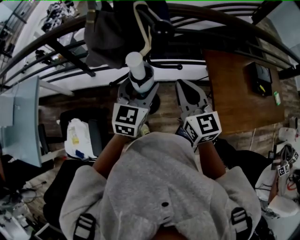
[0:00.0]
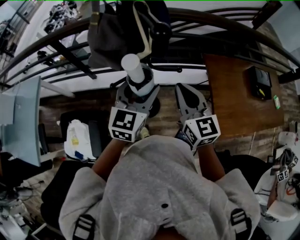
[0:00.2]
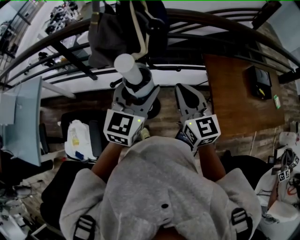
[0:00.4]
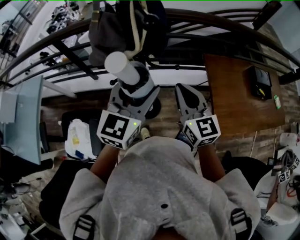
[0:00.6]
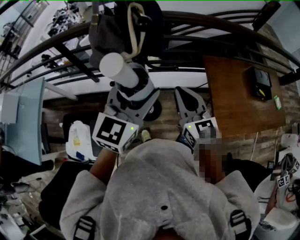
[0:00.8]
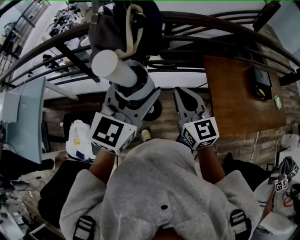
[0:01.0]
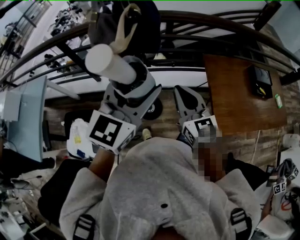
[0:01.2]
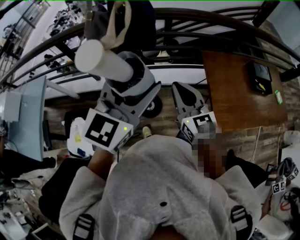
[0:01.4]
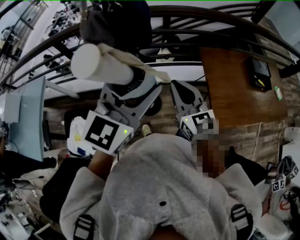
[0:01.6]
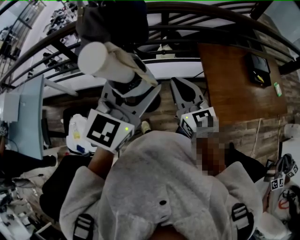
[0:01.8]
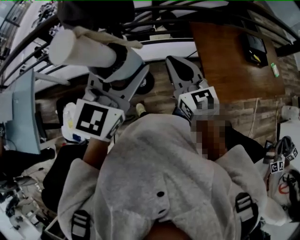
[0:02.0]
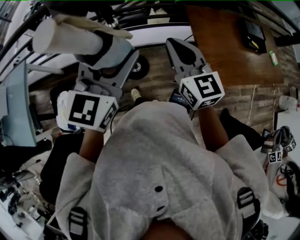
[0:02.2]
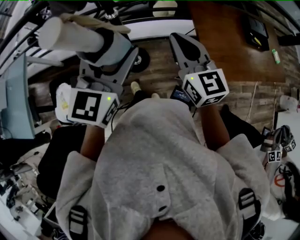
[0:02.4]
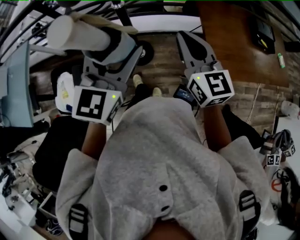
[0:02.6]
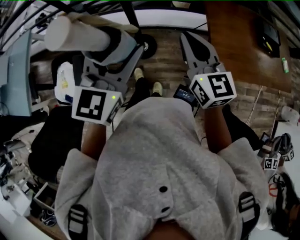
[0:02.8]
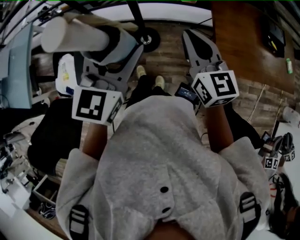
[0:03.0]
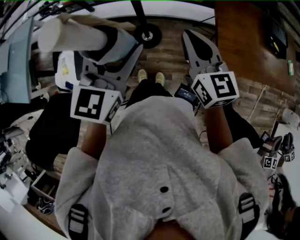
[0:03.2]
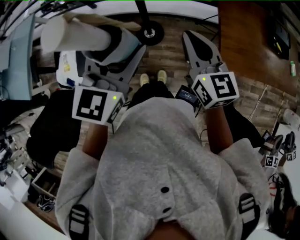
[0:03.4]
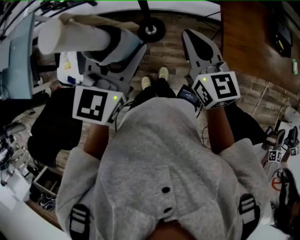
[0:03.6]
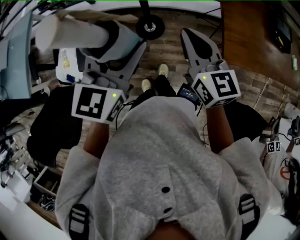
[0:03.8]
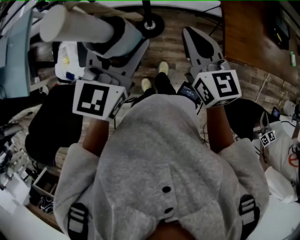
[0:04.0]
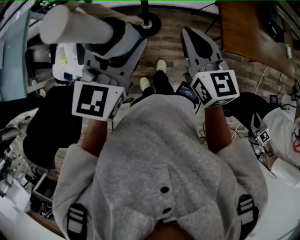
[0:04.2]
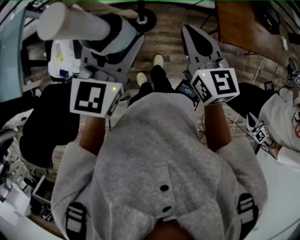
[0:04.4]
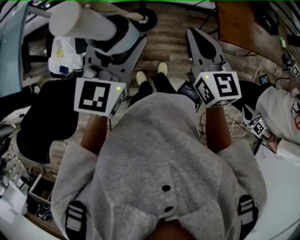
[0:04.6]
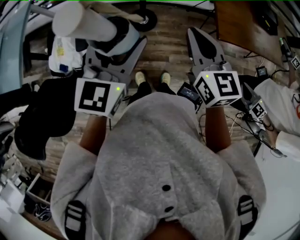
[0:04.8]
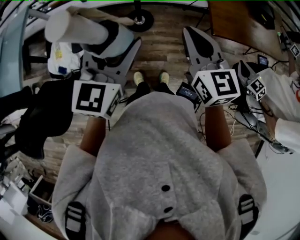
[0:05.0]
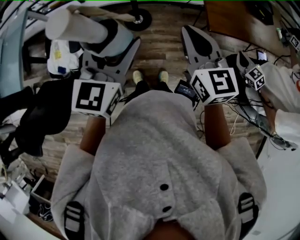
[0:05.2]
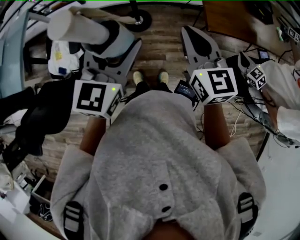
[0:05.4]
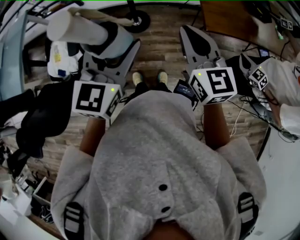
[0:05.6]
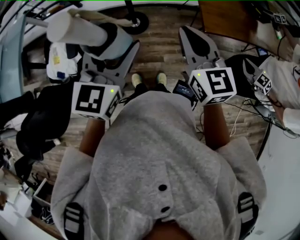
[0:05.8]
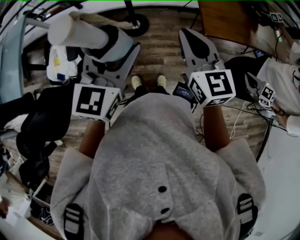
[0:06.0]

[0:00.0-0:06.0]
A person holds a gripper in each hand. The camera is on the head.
0:00.0 to 0:01.6: The left gripper moves upward, backward and to the right, some 20 cm. The right gripper shifts approximately 5 cm to the right.
0:01.6 to 0:03.0: The right gripper moves to the right and downward, some 10 cm. Meanwhile the left gripper moves downward and backward, some 15 cm.
0:03.0 to 0:04.4: Both grippers move to the left and backward, some 15 cm.
0:04.4 to 0:06.0: The right gripper ends up roughly 5 cm from where it was.

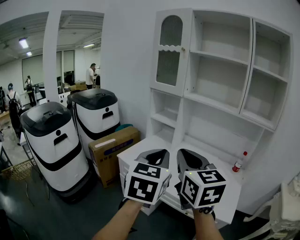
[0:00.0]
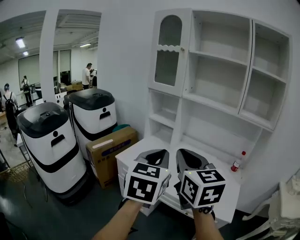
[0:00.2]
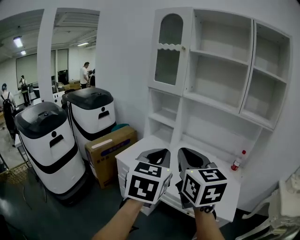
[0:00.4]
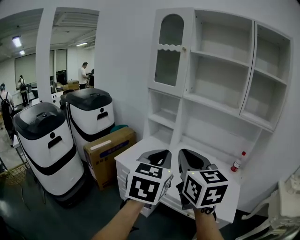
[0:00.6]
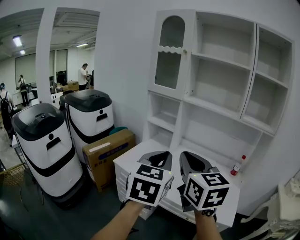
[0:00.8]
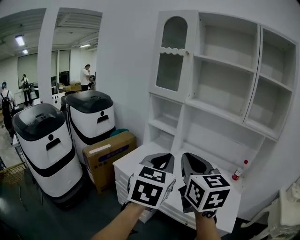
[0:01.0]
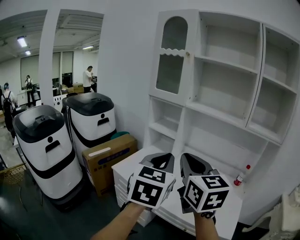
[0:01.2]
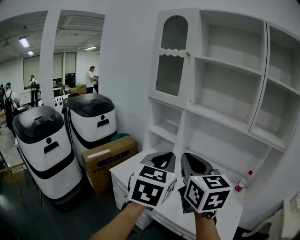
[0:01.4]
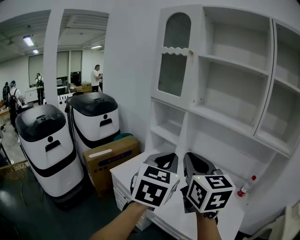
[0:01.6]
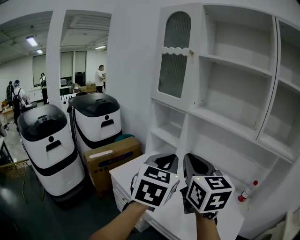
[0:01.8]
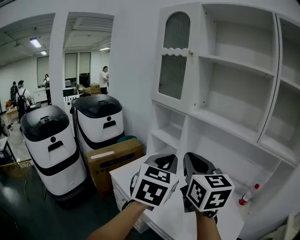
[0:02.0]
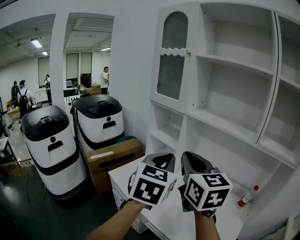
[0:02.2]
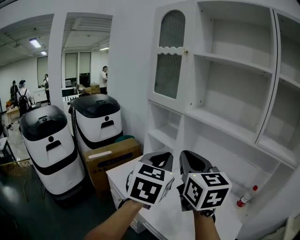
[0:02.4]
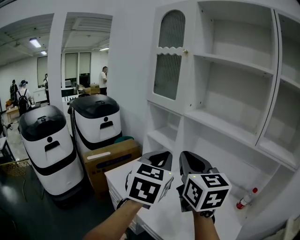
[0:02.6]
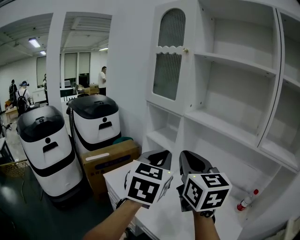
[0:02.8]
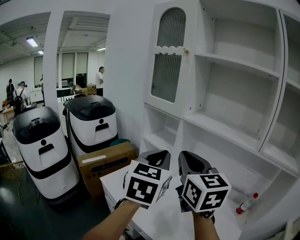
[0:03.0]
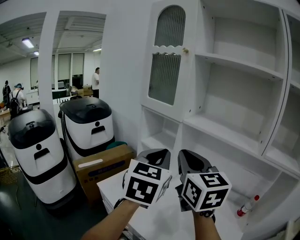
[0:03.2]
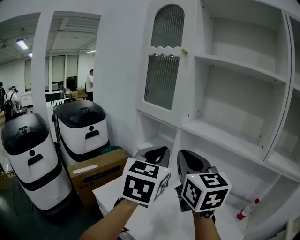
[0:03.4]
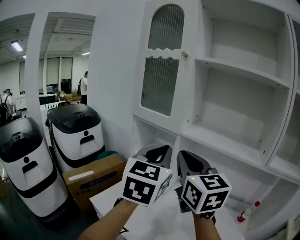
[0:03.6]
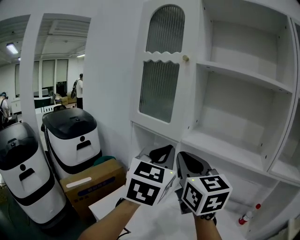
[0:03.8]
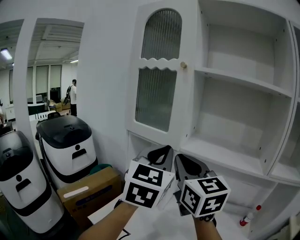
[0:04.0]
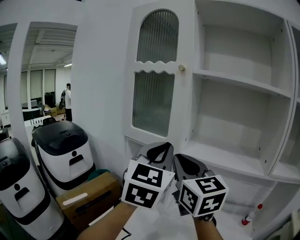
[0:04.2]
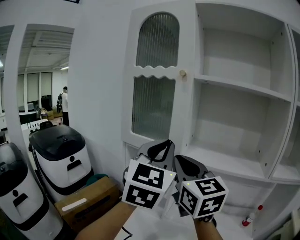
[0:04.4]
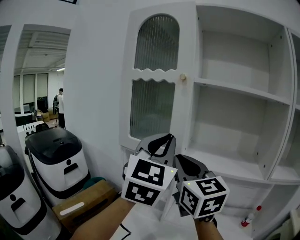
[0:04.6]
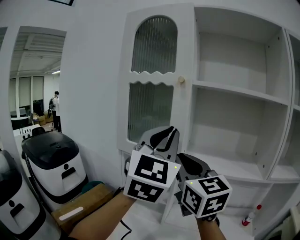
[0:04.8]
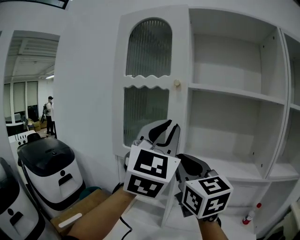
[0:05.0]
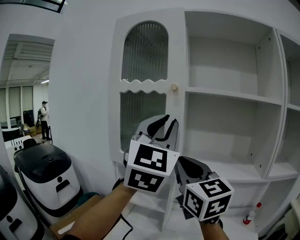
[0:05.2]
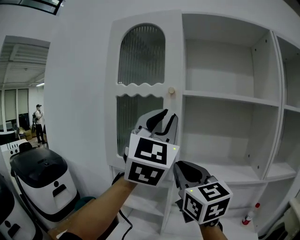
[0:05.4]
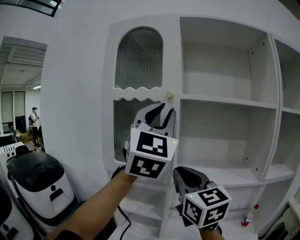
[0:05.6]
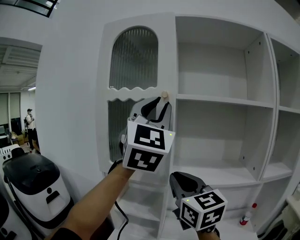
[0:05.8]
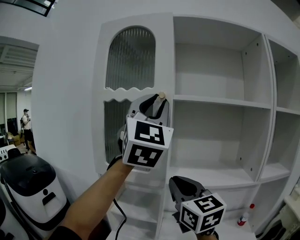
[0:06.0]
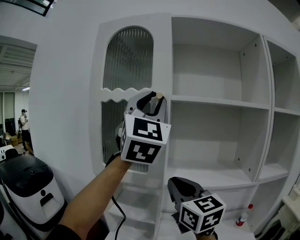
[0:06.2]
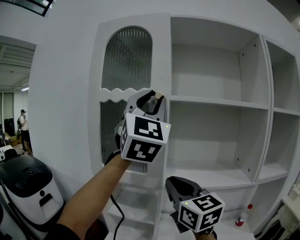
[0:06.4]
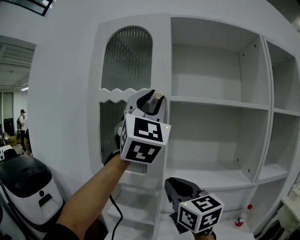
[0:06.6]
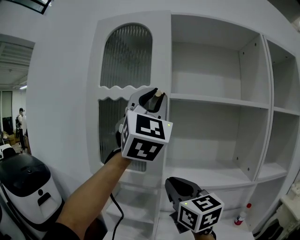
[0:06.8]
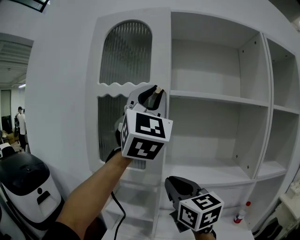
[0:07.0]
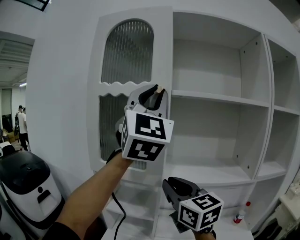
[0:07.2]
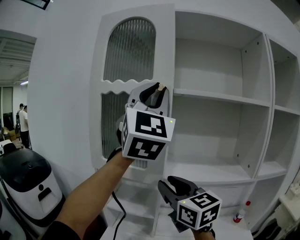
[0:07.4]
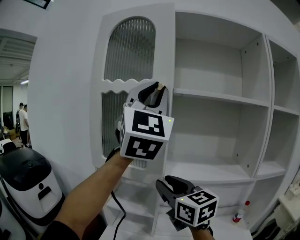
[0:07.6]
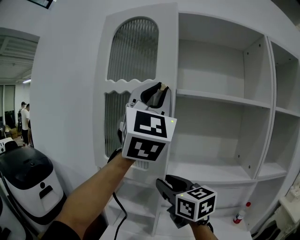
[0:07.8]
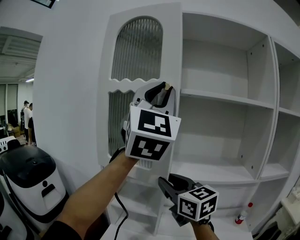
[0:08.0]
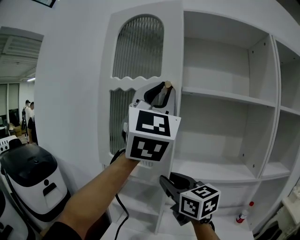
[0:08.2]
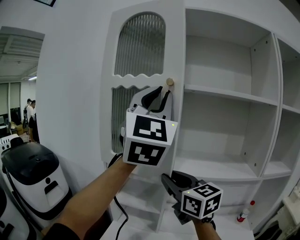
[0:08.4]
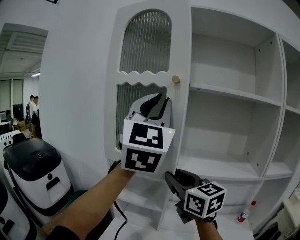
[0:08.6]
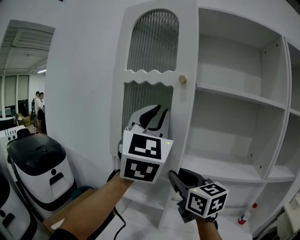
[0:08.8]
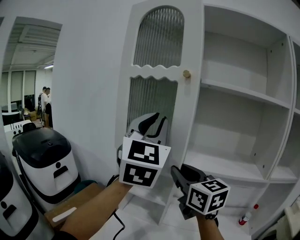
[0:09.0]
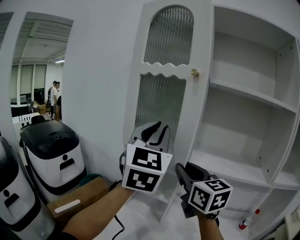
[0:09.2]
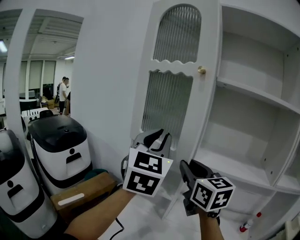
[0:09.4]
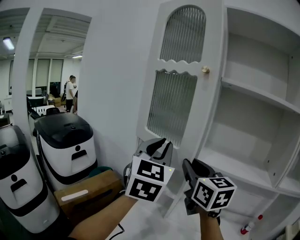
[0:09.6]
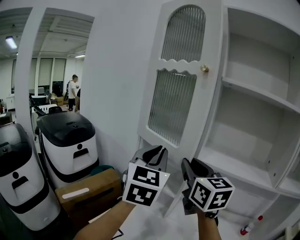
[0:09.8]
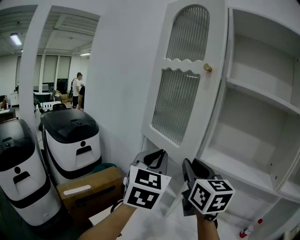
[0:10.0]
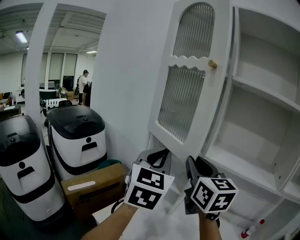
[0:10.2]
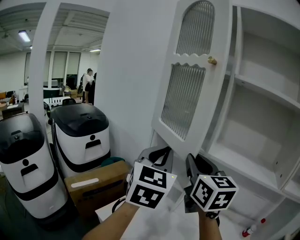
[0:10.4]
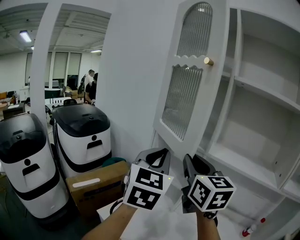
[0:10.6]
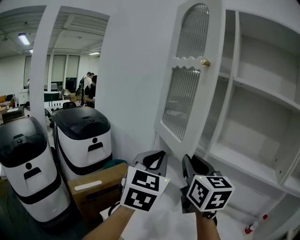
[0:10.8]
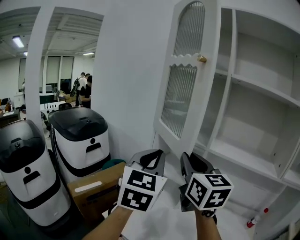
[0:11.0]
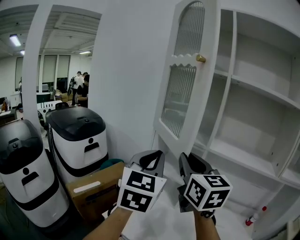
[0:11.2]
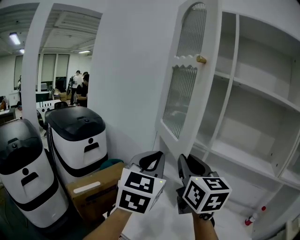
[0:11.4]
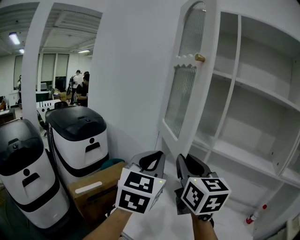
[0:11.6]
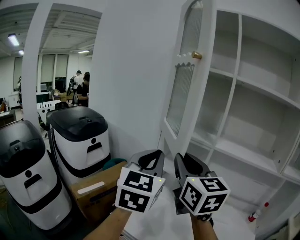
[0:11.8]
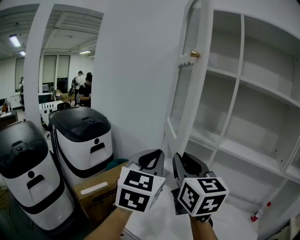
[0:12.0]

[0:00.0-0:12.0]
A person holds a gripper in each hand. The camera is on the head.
0:00.0 to 0:01.6: The grippers both shift forward by about 15 cm.
0:01.6 to 0:03.0: Both grippers move forward, about 10 cm.
0:03.0 to 0:04.4: The two grippers go roughly 20 cm forward and upward. The left gripper turns by approximately 30 degrees.
0:04.4 to 0:06.0: The left gripper goes roughly 20 cm upward, changes its angle by some 30 degrees, and opens.
0:06.0 to 0:07.6: The right gripper opens up.
0:07.6 to 0:09.0: The left gripper moves downward and to the left, about 15 cm, and changes its angle by approximately 20 degrees.
0:09.0 to 0:10.4: The left gripper moves downward and backward, roughly 15 cm, and changes its angle by about 20 degrees; the right gripper ends up approximately 5 cm from where it was.
0:10.4 to 0:12.0: The left gripper travels to the left by about 10 cm; the right gripper moves to the left and backward, some 15 cm.

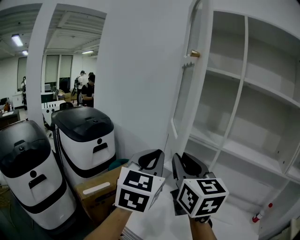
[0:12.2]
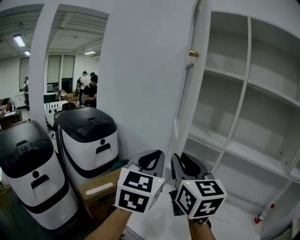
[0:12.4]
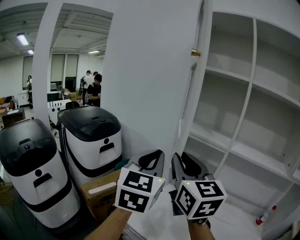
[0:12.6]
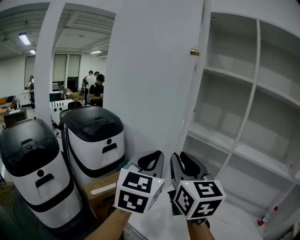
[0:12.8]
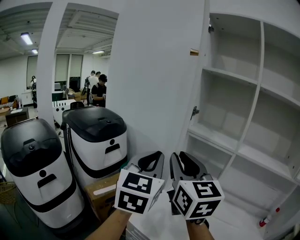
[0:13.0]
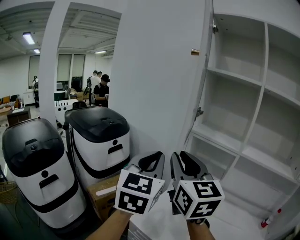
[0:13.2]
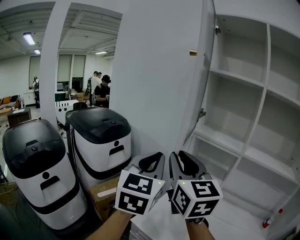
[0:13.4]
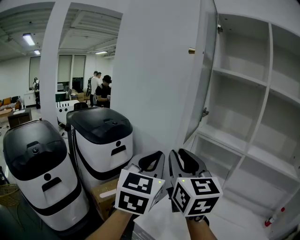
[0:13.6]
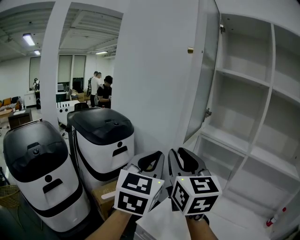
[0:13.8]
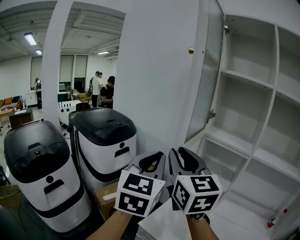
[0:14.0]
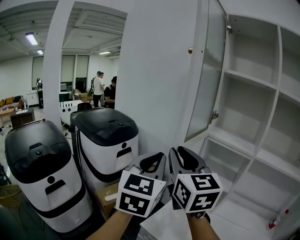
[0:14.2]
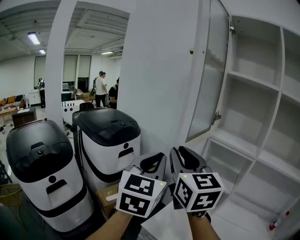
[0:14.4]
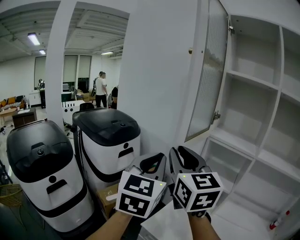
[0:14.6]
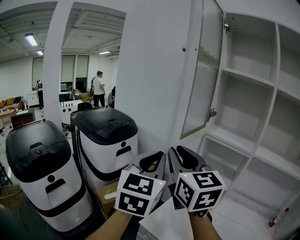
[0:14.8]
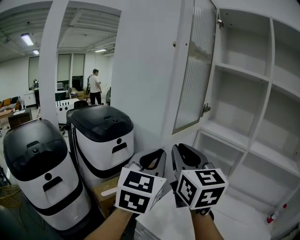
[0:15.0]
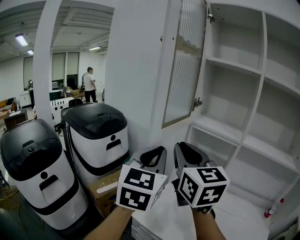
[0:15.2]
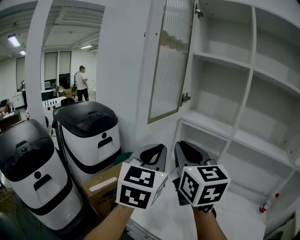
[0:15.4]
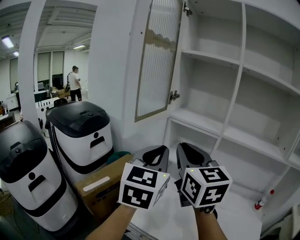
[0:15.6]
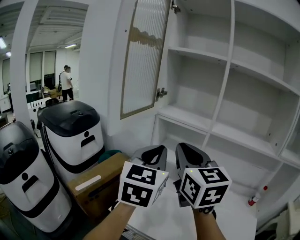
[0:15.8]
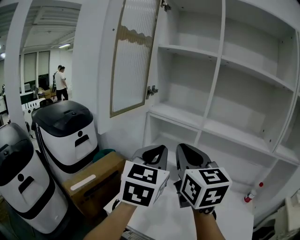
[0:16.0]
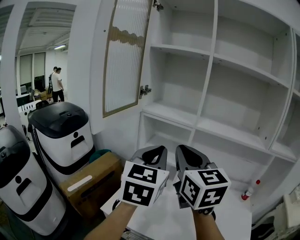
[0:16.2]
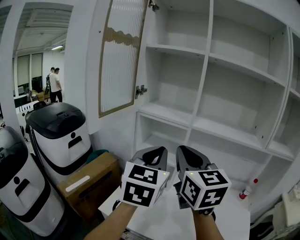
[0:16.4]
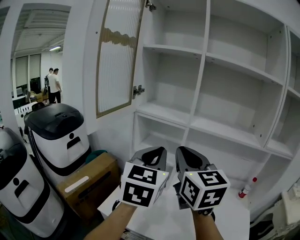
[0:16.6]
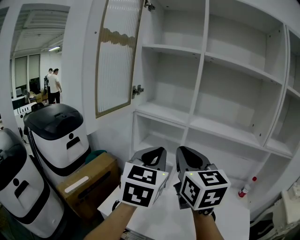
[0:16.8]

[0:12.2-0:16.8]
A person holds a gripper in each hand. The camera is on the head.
0:12.2 to 0:13.8: The grippers both shift to the left by about 15 cm.
0:13.8 to 0:15.2: The right gripper moves to the right, some 5 cm.
0:15.2 to 0:16.8: Both grippers travel together to the right, some 20 cm.

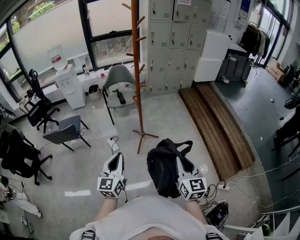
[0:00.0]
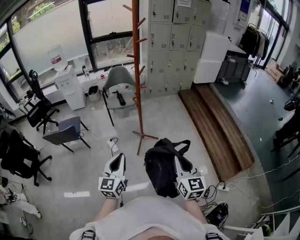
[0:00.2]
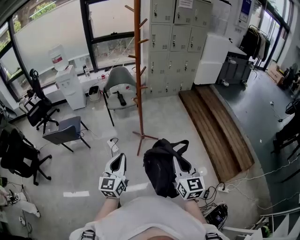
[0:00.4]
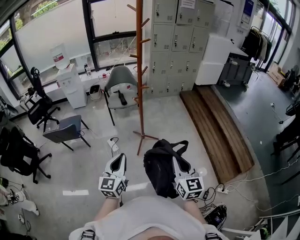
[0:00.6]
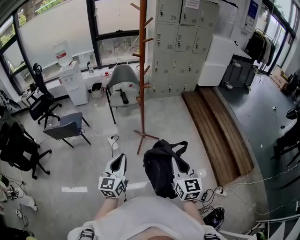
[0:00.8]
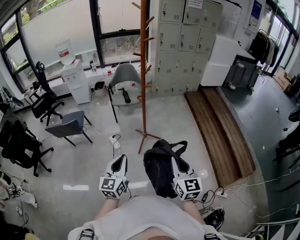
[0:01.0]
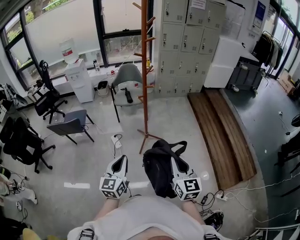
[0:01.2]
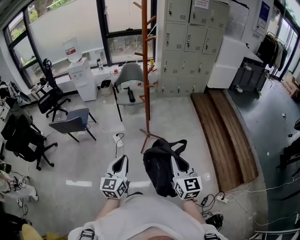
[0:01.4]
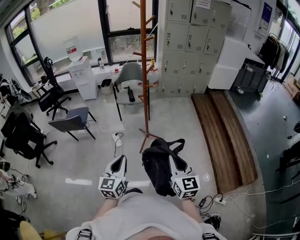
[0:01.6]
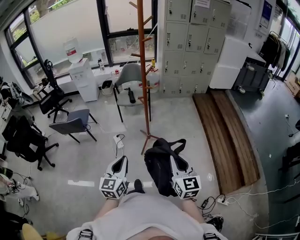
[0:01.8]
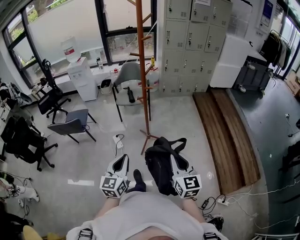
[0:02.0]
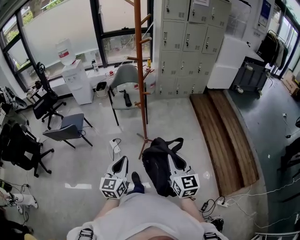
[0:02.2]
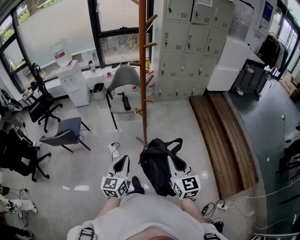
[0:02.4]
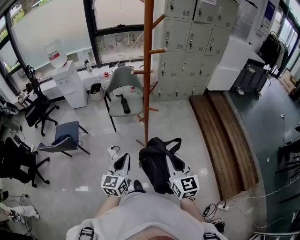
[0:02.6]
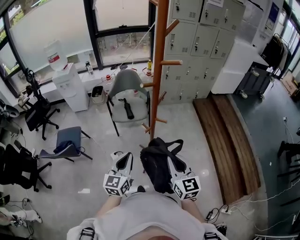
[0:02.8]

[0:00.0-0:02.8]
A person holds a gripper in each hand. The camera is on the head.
0:00.0 to 0:01.4: The left gripper shifts by approximately 5 cm.
0:01.4 to 0:02.8: The grippers both shift forward by some 35 cm.
